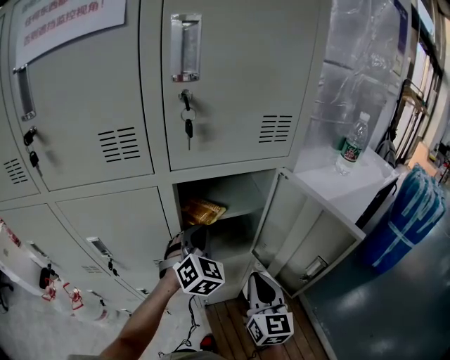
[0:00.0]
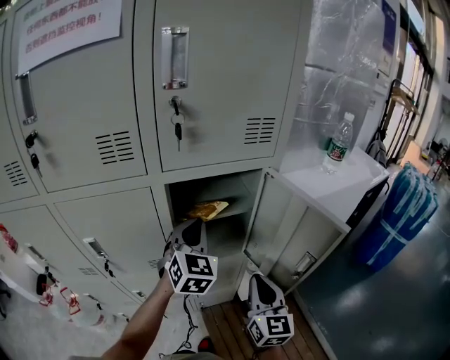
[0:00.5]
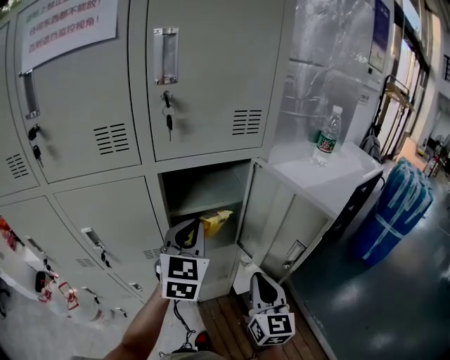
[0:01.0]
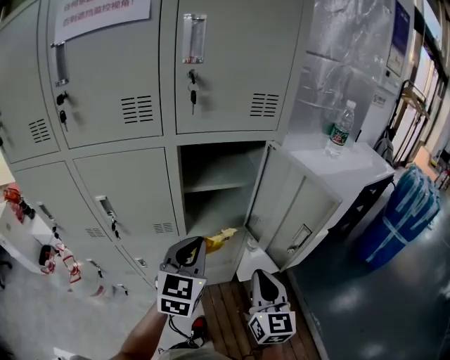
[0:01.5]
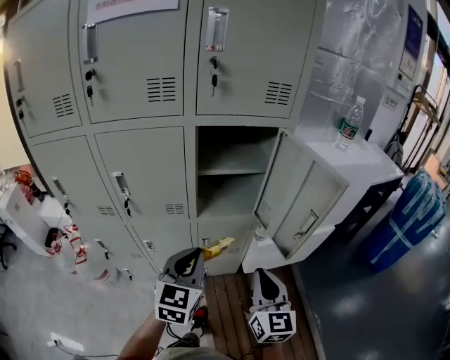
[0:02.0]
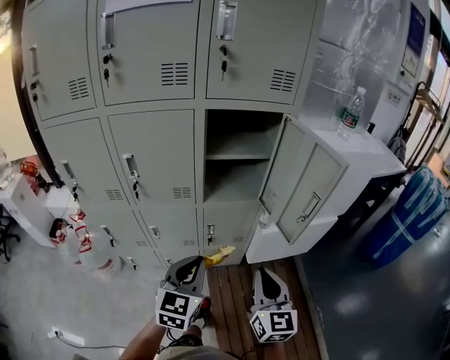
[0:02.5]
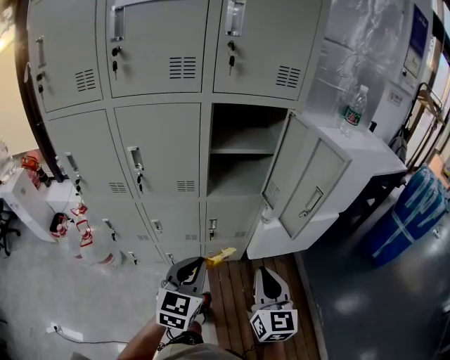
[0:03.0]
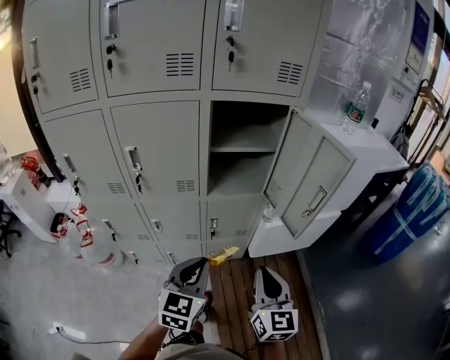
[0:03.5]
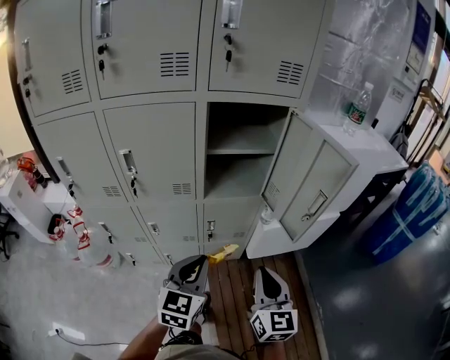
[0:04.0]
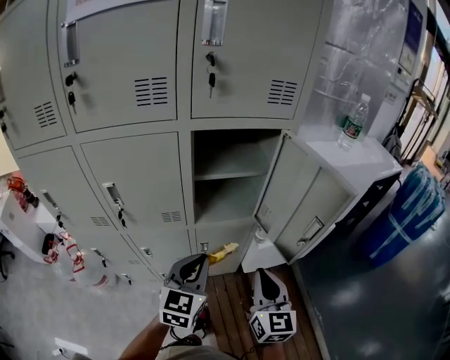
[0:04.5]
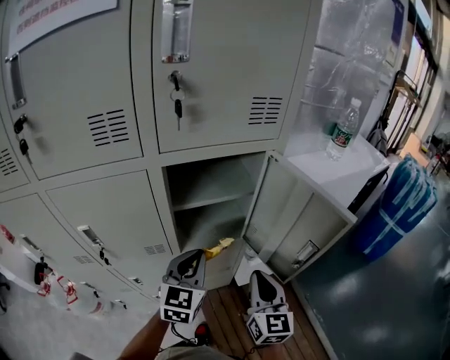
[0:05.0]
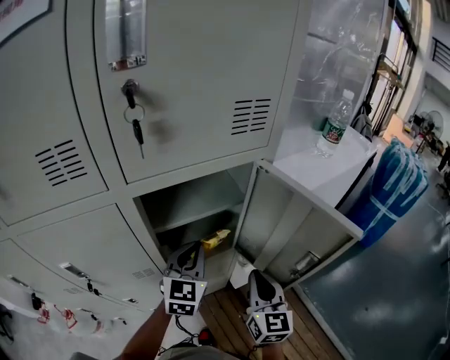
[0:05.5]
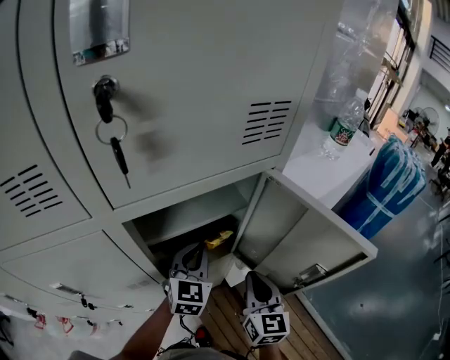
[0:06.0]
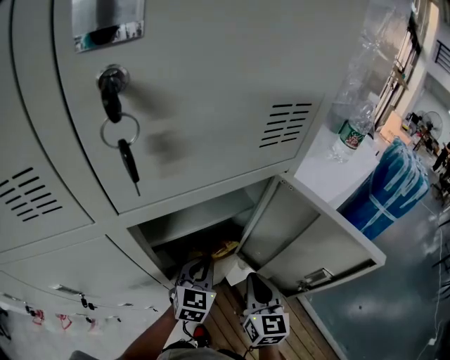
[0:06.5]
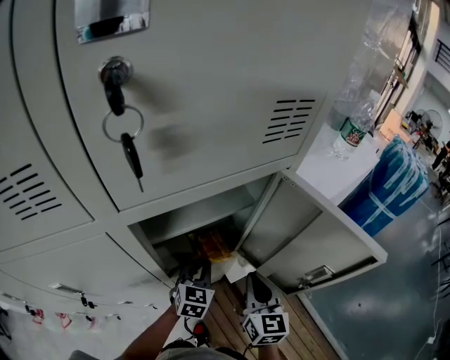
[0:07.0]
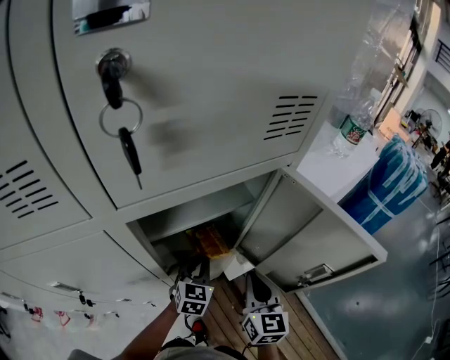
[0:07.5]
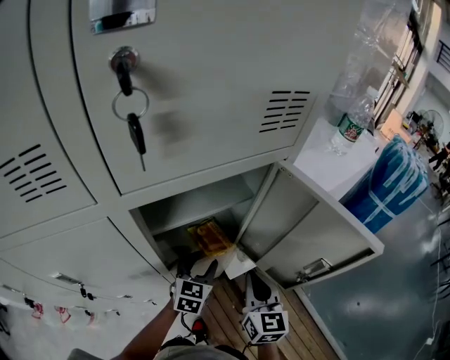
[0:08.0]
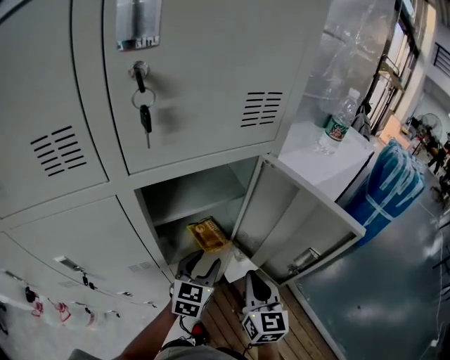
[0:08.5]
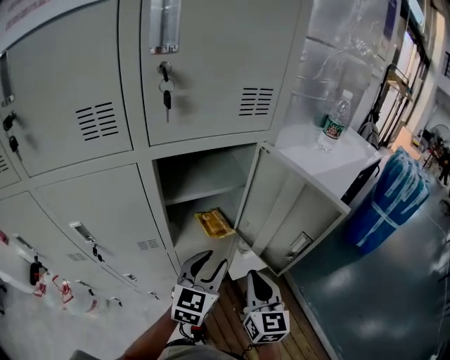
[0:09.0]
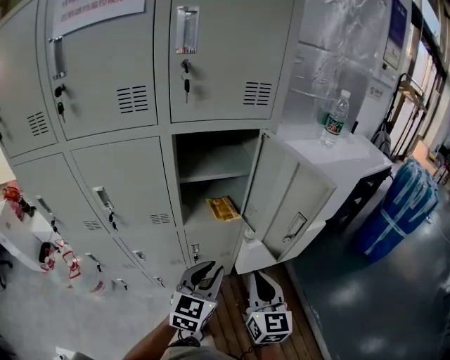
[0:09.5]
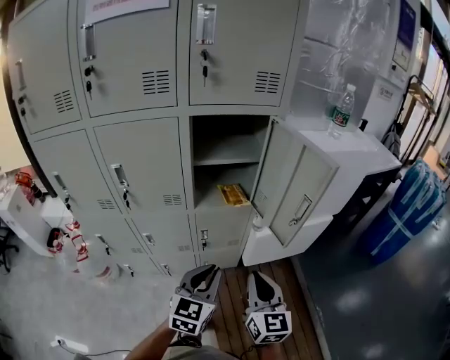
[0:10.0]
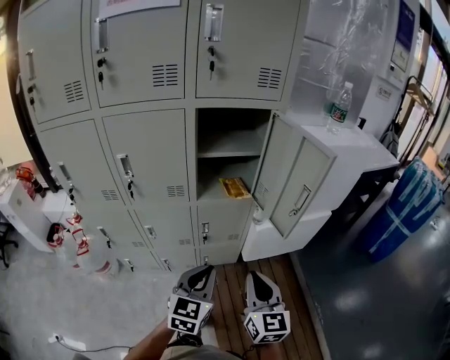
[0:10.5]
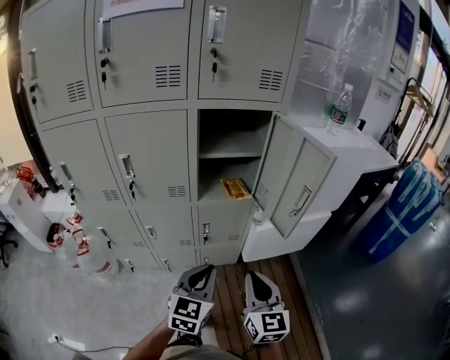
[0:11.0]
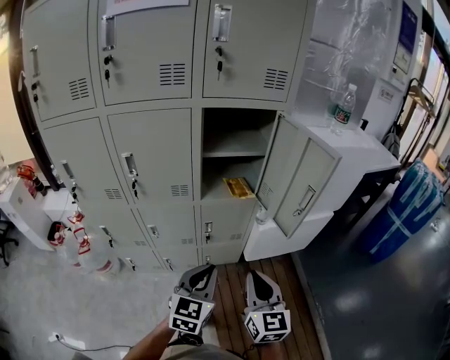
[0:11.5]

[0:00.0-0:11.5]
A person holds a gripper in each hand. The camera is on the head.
0:00.0 to 0:02.0: The left gripper heads backward, covering about 25 cm, and changes its angle by roughly 40 degrees; the right gripper travels backward by about 15 cm.
0:02.0 to 0:04.0: The left gripper is displaced backward and downward by approximately 10 cm, while the right gripper ends up approximately 5 cm from where it was.
0:04.0 to 0:06.0: Both grippers travel together forward, some 30 cm.
0:06.0 to 0:07.5: The left gripper travels downward by some 10 cm.
0:07.5 to 0:09.5: The left gripper is displaced backward and upward by some 30 cm, and opens, then closes again; the right gripper heads backward, covering about 15 cm.
0:09.5 to 0:11.5: The two grippers go approximately 10 cm backward.

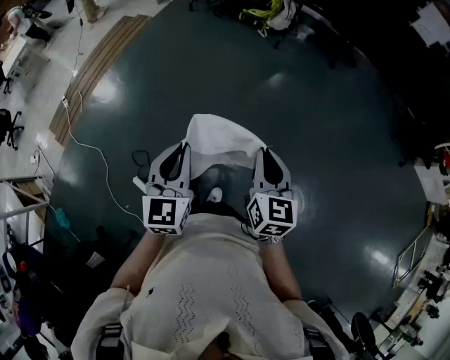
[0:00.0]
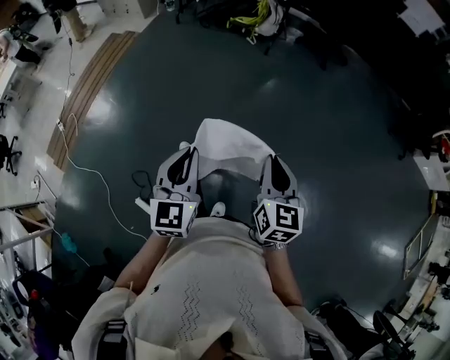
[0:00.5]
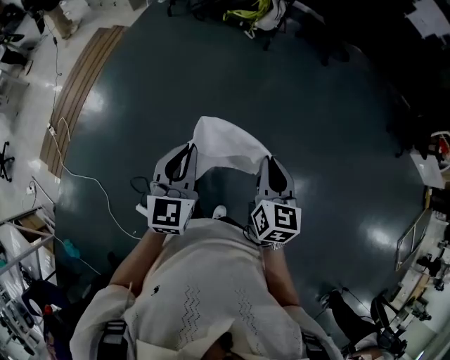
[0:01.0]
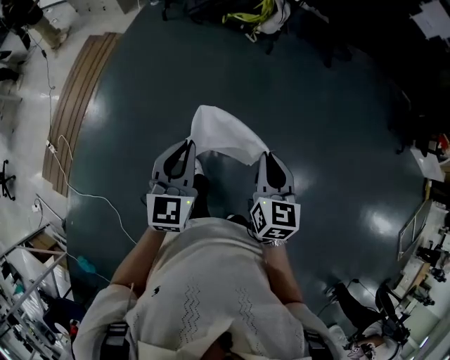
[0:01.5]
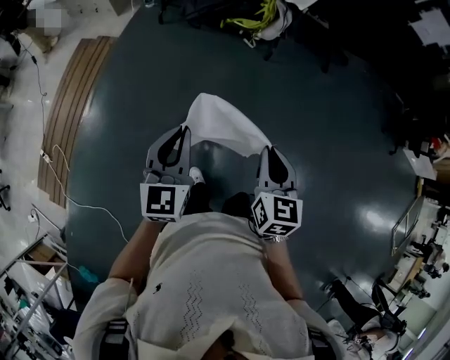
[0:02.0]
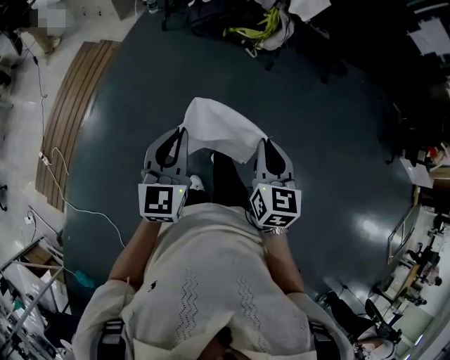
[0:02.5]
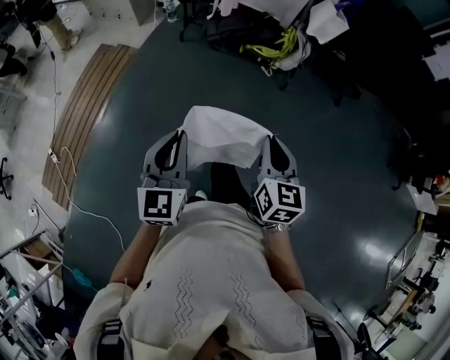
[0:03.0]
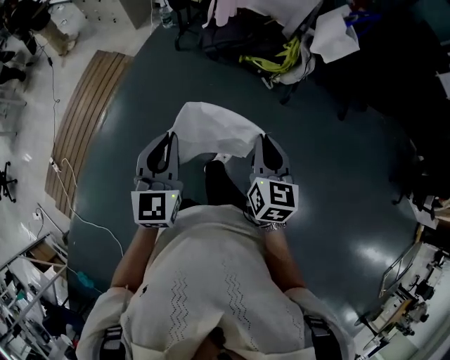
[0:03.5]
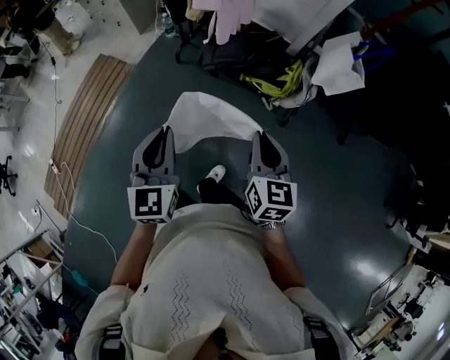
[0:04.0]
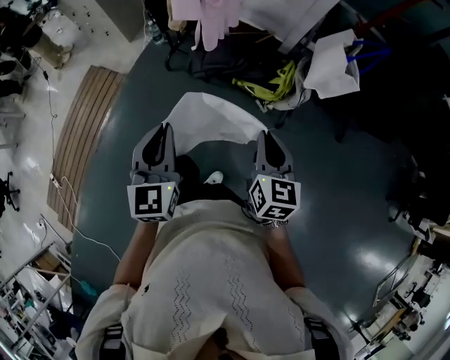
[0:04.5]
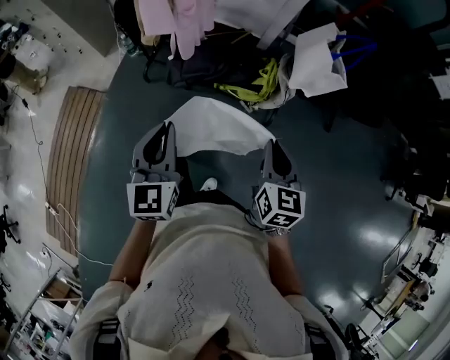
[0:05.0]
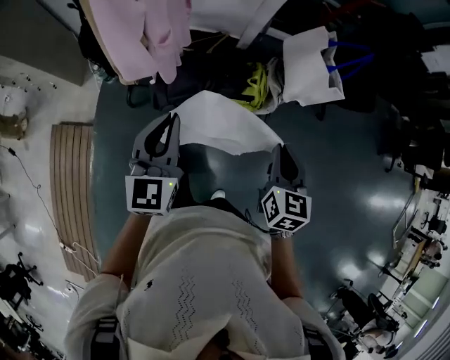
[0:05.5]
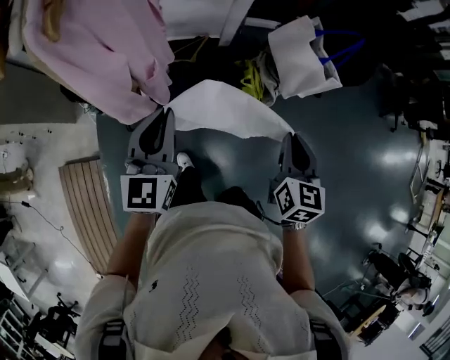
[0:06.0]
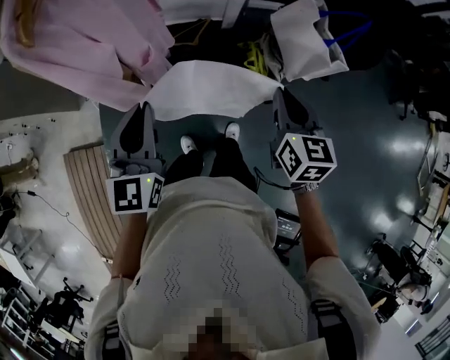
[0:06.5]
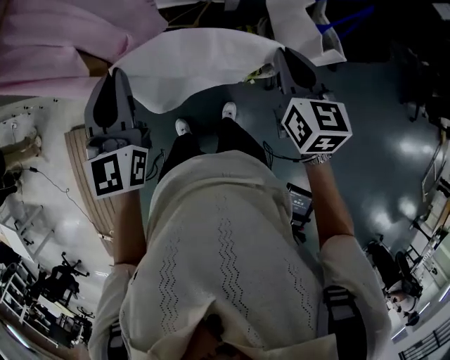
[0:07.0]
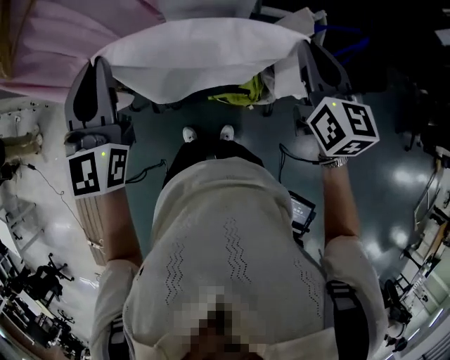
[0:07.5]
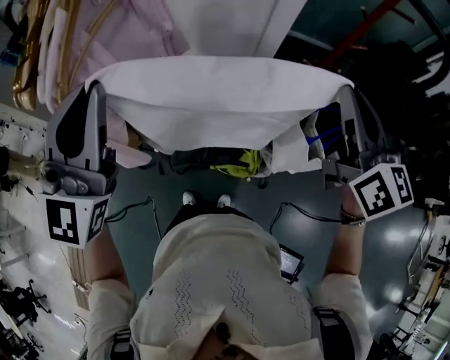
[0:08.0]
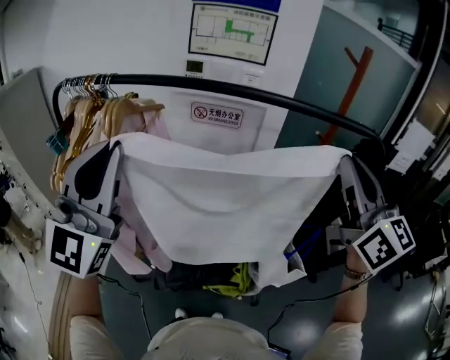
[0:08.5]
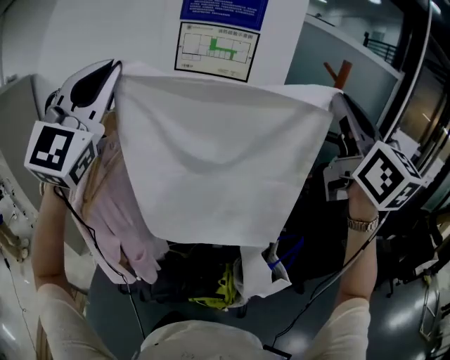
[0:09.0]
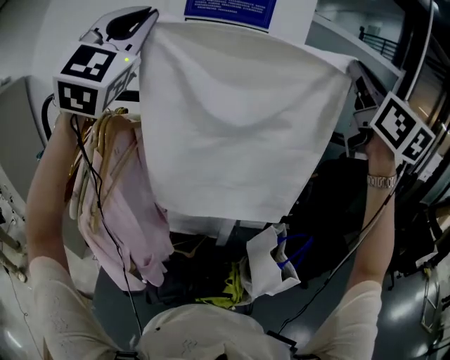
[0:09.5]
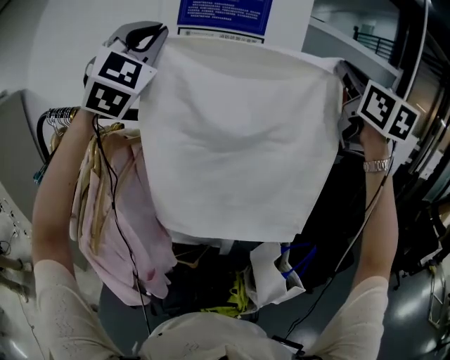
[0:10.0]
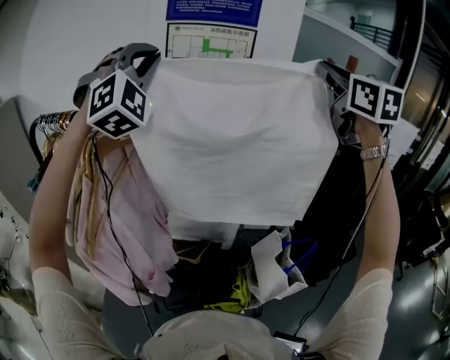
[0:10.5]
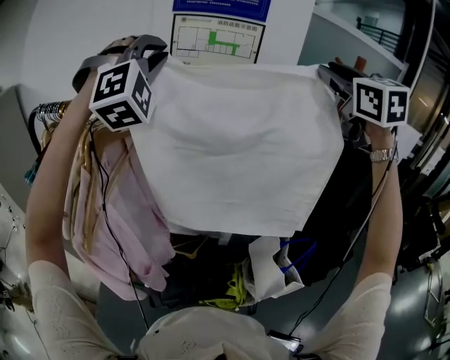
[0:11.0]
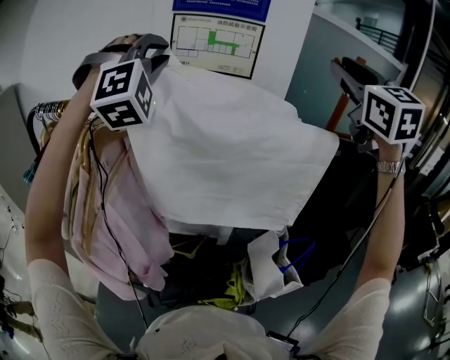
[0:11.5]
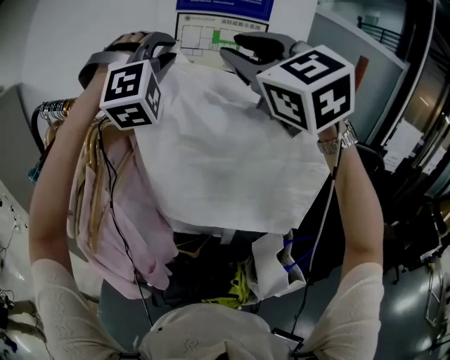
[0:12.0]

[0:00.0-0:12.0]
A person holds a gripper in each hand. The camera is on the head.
0:00.0 to 0:02.0: Both grippers are carried forward and to the left, some 50 cm.
0:02.0 to 0:04.0: The two grippers travel together, forward, roughly 50 cm.
0:04.0 to 0:06.0: The right gripper moves about 35 cm, and swivels some 40 degrees. The left gripper ends up about 50 cm from where it was, and swivels about 40 degrees.
0:06.0 to 0:08.0: The left gripper shifts some 30 cm upward, and swivels some 40 degrees. Meanwhile the right gripper goes roughly 40 cm upward and forward, and tips its fingers upward by roughly 30 degrees.
0:08.0 to 0:10.0: The two grippers go roughly 40 cm upward and forward. The left gripper changes its angle by roughly 40 degrees. The right gripper swivels some 30 degrees.
0:10.0 to 0:12.0: The left gripper moves downward and forward, approximately 10 cm, and changes its angle by approximately 40 degrees; the right gripper moves to the left, some 25 cm, turns by some 40 degrees, and opens its fingers.

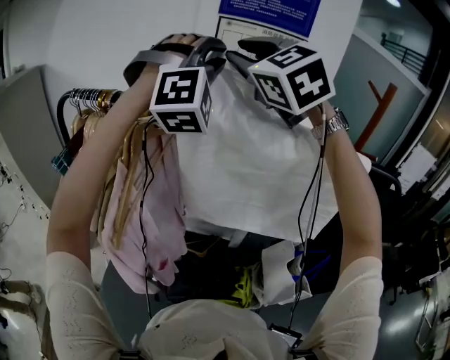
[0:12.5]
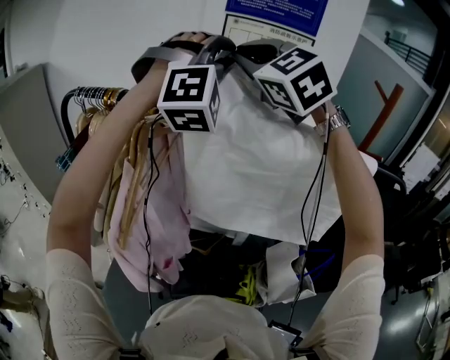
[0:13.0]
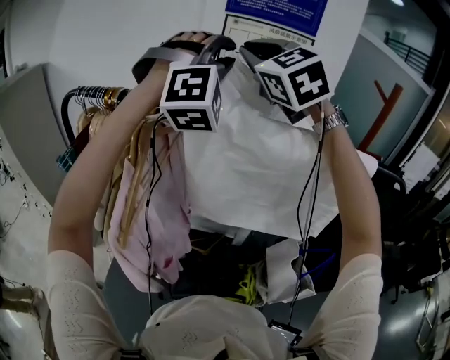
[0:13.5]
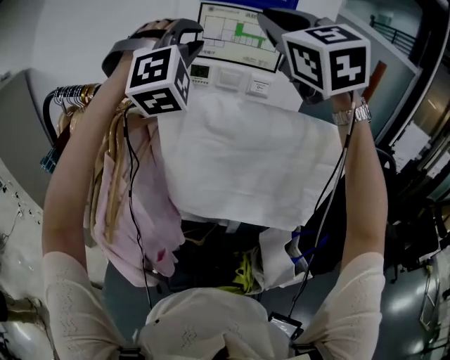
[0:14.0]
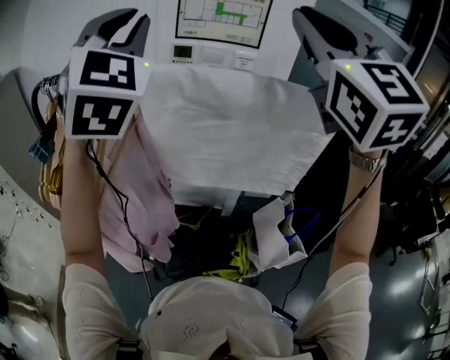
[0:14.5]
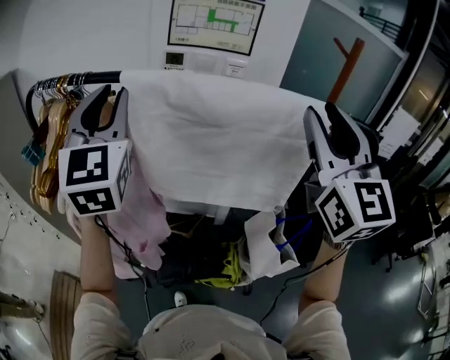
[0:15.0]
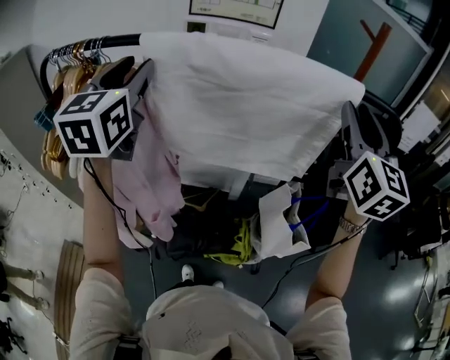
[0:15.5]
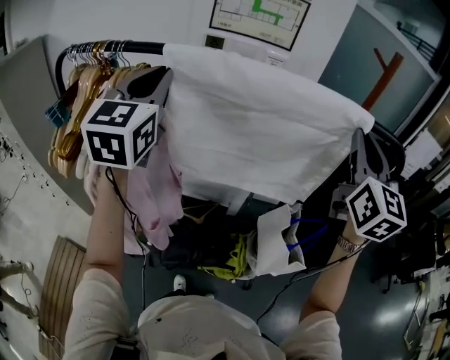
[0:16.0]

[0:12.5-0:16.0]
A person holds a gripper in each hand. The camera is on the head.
0:12.5 to 0:14.5: The right gripper heads backward and to the right, covering about 20 cm, changes its angle by some 30 degrees, and closes its fingers; the left gripper goes about 10 cm backward and to the left, and rolls counterclockwise, seen from behind, by some 40 degrees.
0:14.5 to 0:16.0: The left gripper is displaced downward by approximately 15 cm, and changes its angle by approximately 40 degrees, while the right gripper moves downward and to the right, some 25 cm, changes its angle by roughly 30 degrees, and opens and closes again.
